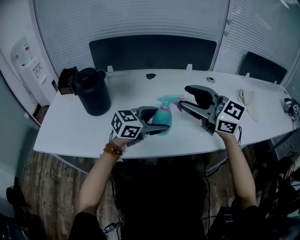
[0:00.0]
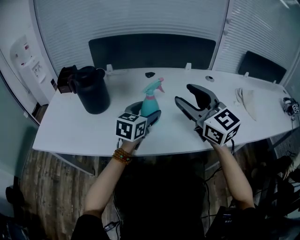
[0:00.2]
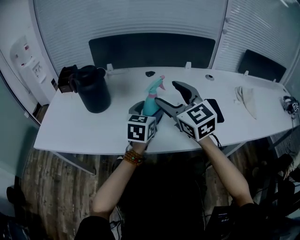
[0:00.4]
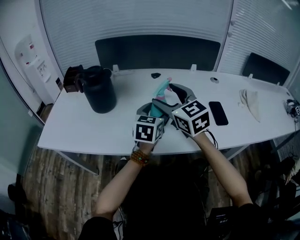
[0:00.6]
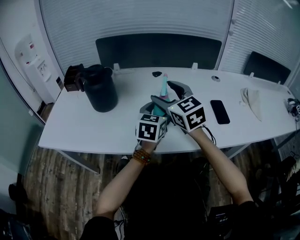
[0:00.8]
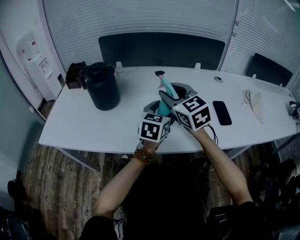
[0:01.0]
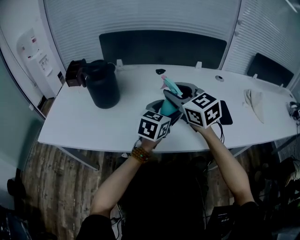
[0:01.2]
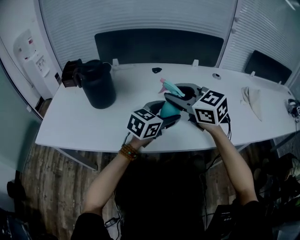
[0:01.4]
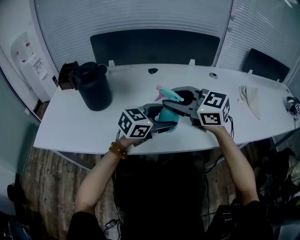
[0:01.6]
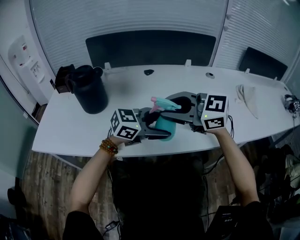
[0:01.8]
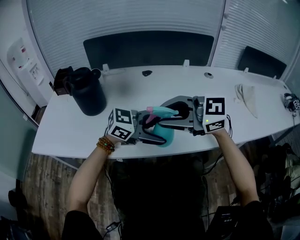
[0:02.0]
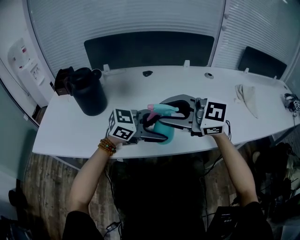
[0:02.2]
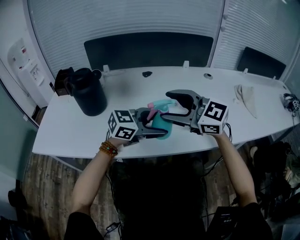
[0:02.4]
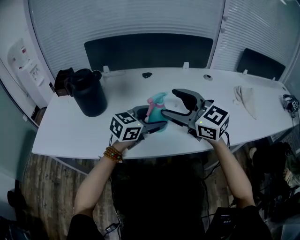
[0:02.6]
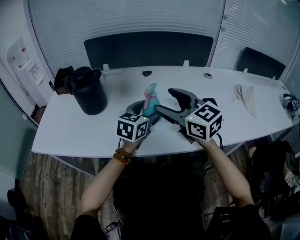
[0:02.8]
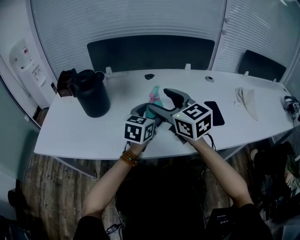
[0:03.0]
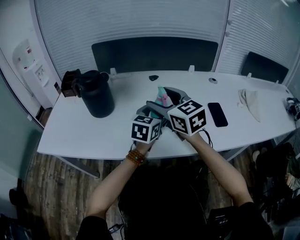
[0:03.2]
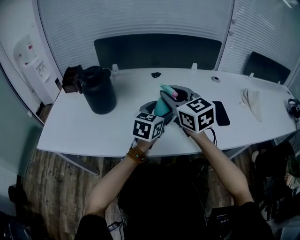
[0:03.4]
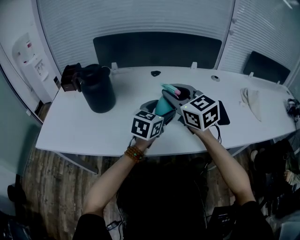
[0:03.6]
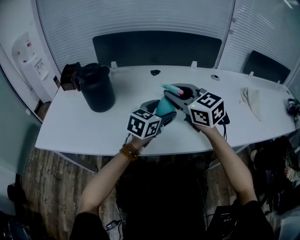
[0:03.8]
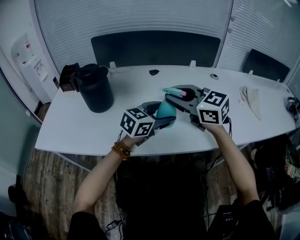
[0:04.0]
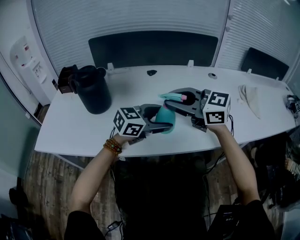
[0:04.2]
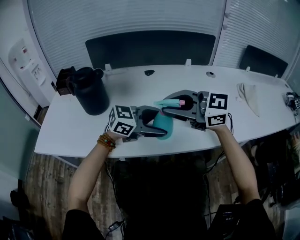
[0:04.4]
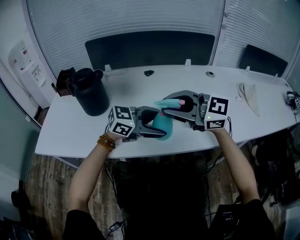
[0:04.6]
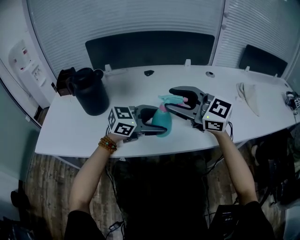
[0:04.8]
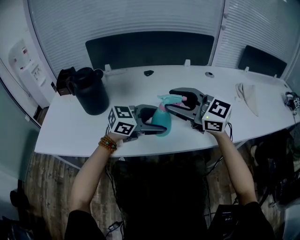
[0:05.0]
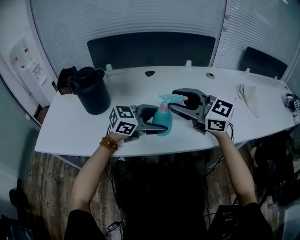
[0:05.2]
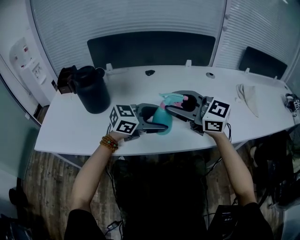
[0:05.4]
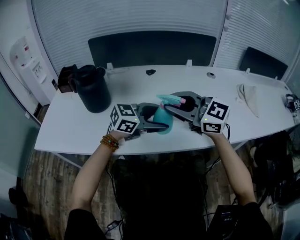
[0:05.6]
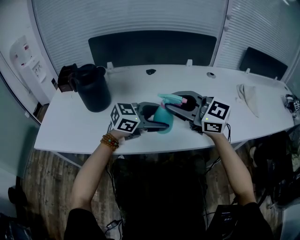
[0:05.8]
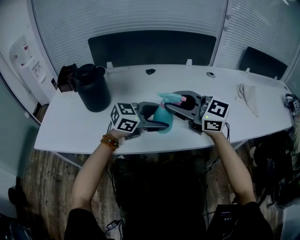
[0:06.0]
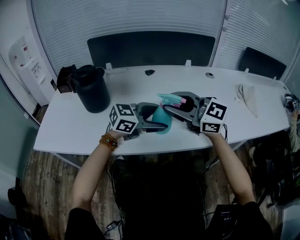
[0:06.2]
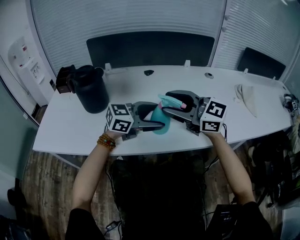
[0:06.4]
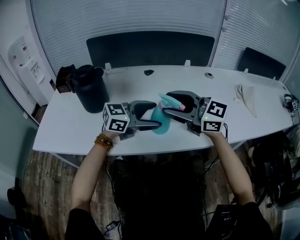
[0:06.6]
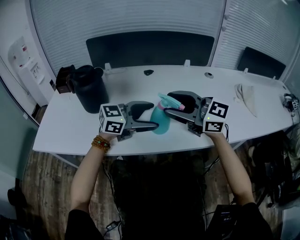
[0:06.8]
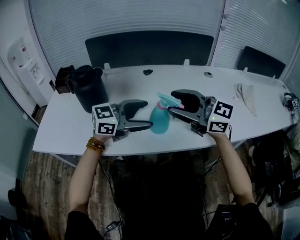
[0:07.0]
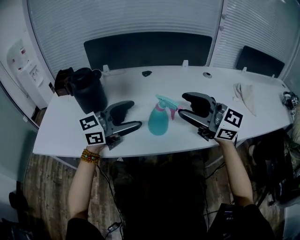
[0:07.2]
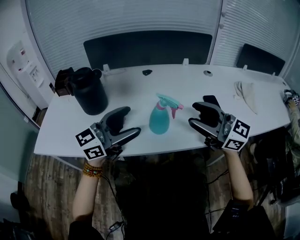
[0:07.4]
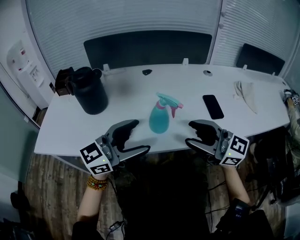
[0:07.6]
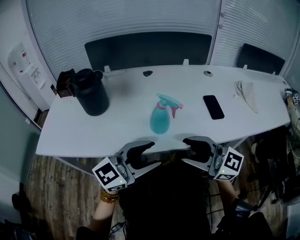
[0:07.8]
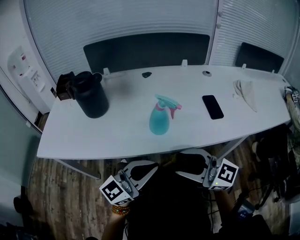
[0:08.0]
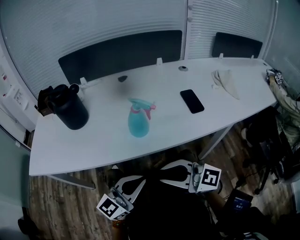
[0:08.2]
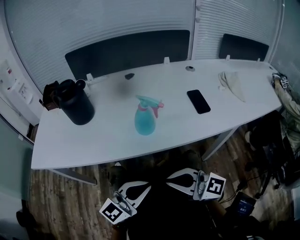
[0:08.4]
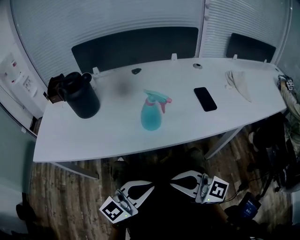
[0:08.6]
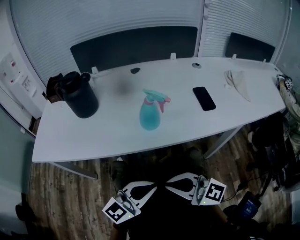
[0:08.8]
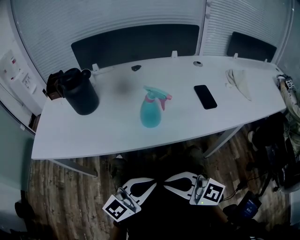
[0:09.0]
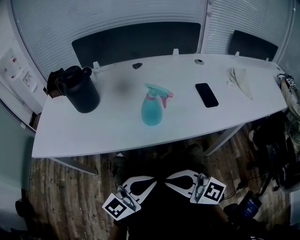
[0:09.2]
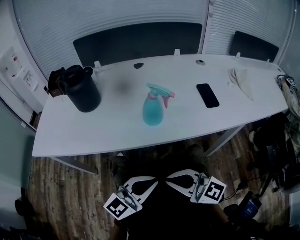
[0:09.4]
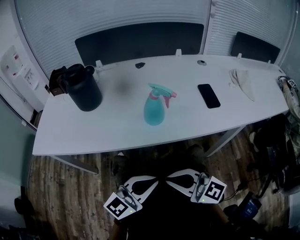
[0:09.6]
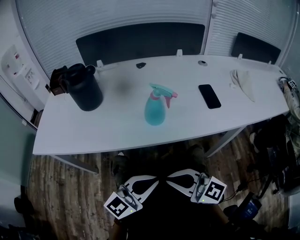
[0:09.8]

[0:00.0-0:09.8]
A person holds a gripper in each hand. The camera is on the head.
0:00.0 to 0:01.4: The right gripper shifts by some 10 cm.
0:01.4 to 0:02.8: The right gripper opens its fingers.
0:02.8 to 0:04.2: The right gripper changes its angle by some 20 degrees, and closes up. Meanwhile the left gripper changes place by roughly 5 cm, and changes its angle by approximately 40 degrees.
0:04.2 to 0:05.6: The grippers stay close to where they were, moving slightly.
0:05.6 to 0:07.0: The left gripper ends up approximately 5 cm from where it was.
0:07.0 to 0:08.4: The right gripper moves about 25 cm, and closes. The left gripper ends up about 25 cm from where it was, rotates approximately 20 degrees, and closes up.
0:08.4 to 0:09.8: The grippers stay close to where they were, moving slightly.

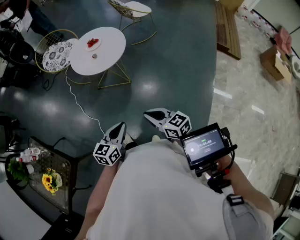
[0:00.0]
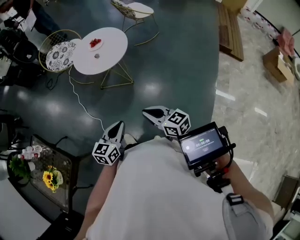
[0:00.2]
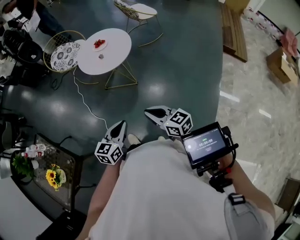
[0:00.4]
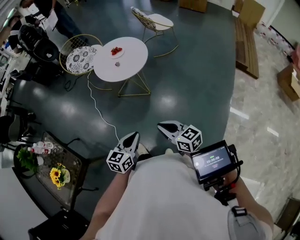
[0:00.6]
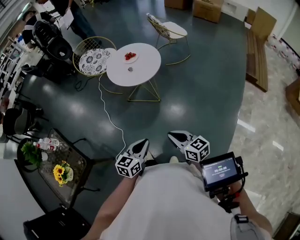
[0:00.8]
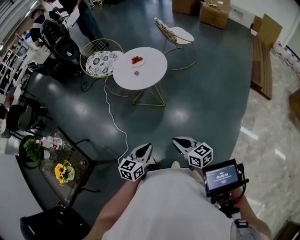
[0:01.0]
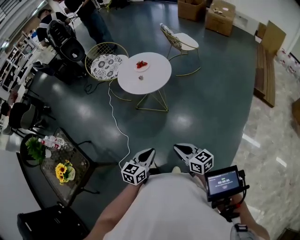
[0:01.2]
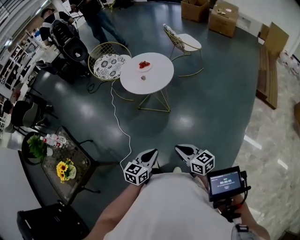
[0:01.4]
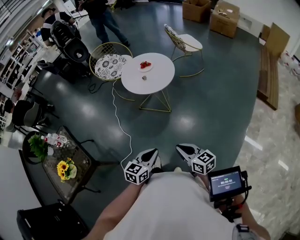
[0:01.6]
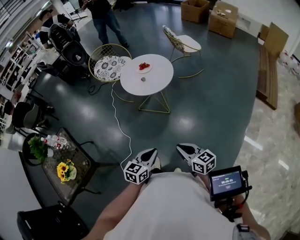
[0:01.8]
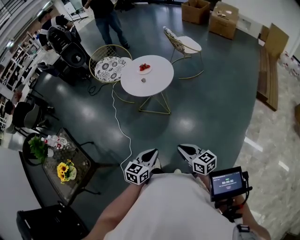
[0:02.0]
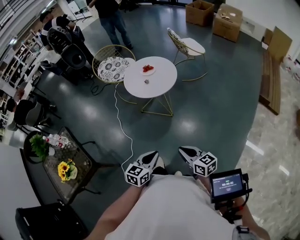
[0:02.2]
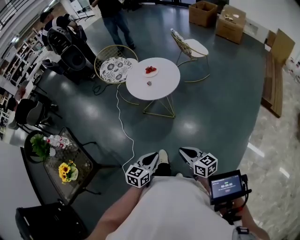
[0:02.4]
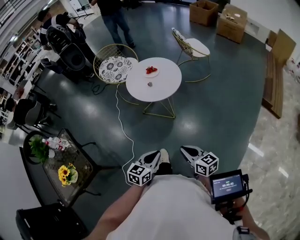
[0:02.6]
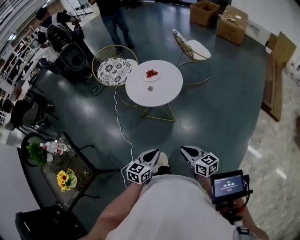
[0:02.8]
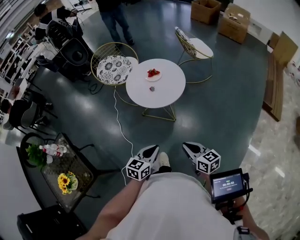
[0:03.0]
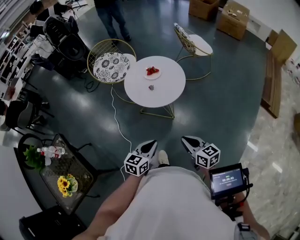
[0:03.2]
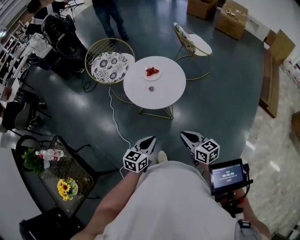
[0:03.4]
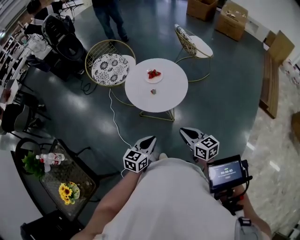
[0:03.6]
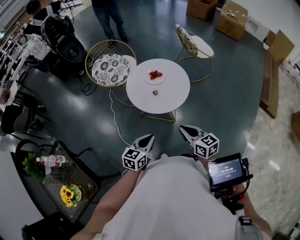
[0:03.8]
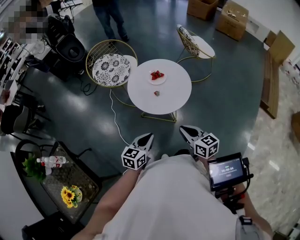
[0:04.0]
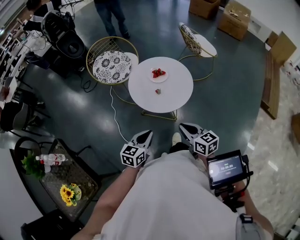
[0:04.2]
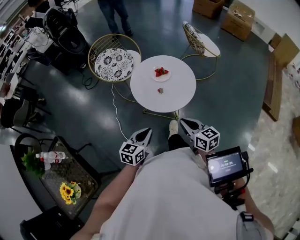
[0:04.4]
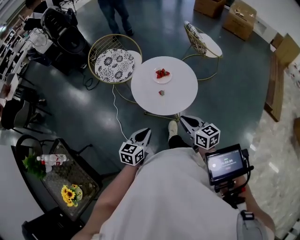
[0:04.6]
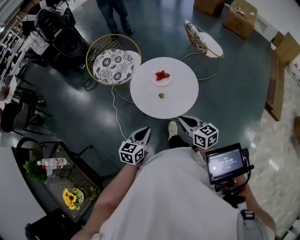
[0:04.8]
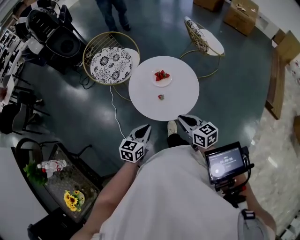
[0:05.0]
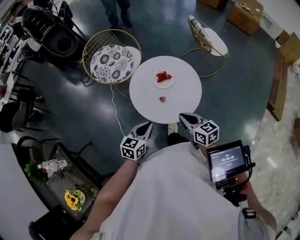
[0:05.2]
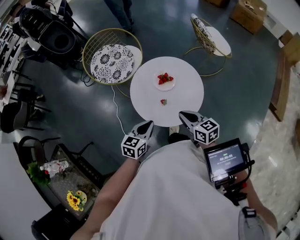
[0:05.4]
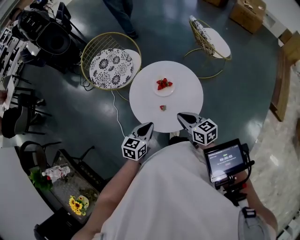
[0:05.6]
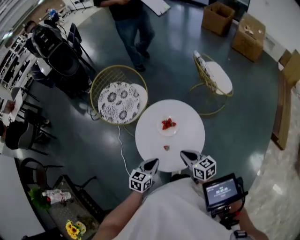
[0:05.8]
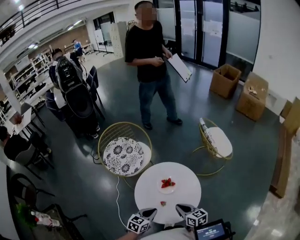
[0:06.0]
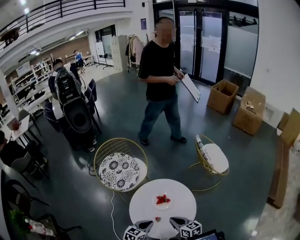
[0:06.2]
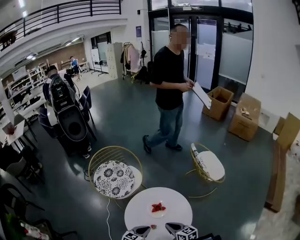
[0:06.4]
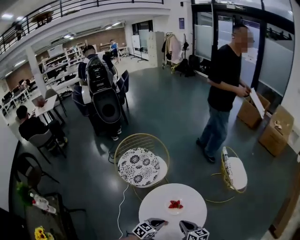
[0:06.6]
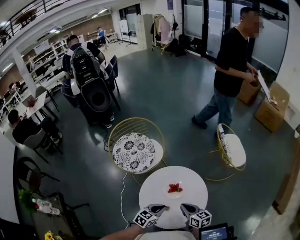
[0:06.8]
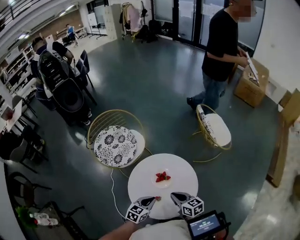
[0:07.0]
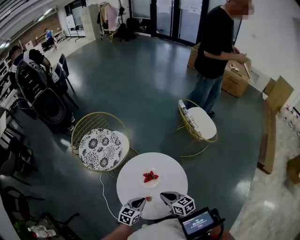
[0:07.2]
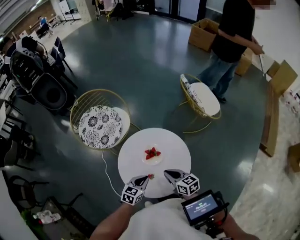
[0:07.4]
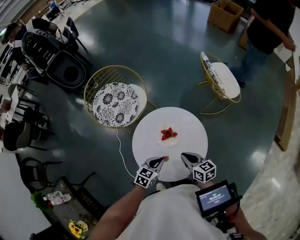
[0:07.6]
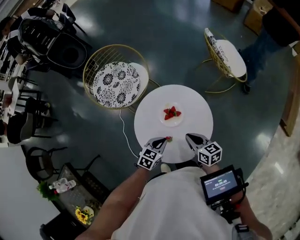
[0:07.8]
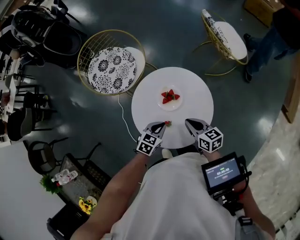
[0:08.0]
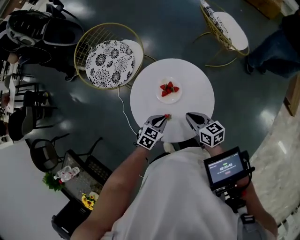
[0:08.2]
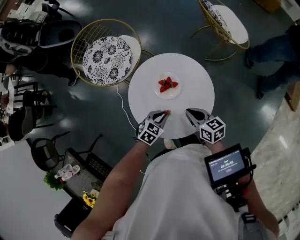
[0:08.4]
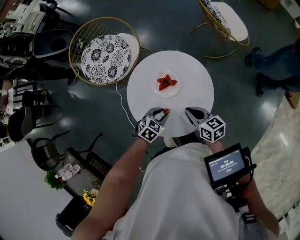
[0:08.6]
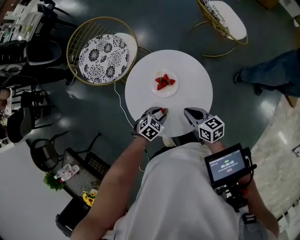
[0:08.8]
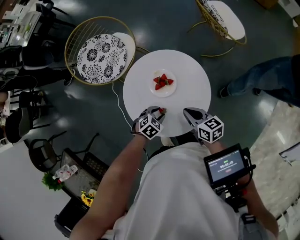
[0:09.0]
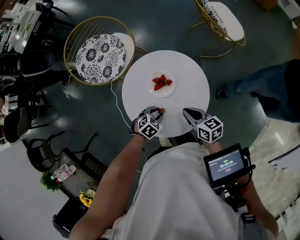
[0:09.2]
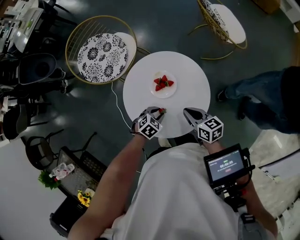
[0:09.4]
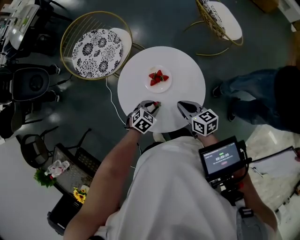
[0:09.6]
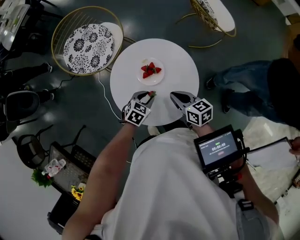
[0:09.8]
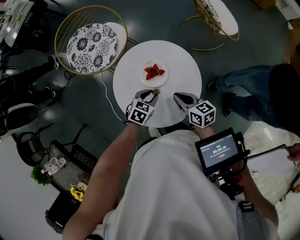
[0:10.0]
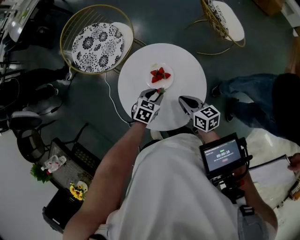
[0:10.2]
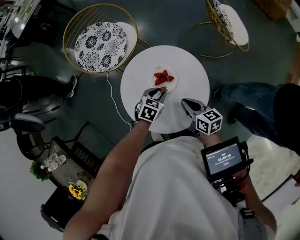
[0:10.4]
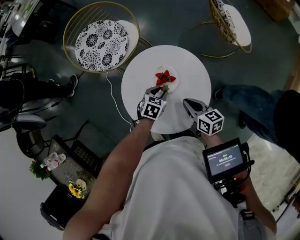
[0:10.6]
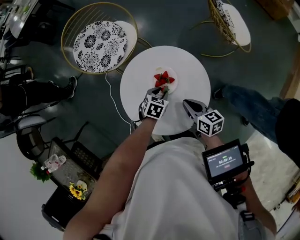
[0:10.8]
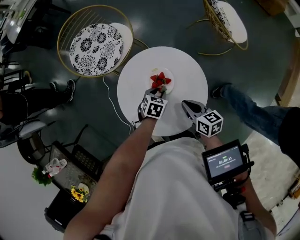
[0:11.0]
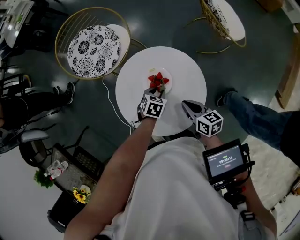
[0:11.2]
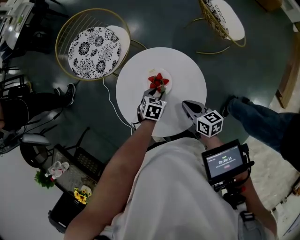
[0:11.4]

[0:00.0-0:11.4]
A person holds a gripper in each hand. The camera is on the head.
0:00.0 to 0:01.4: The grippers stay close to where they were, moving slightly.
0:01.4 to 0:02.8: Both grippers travel together forward, about 10 cm.
0:02.8 to 0:04.2: The left gripper travels forward and to the left by some 25 cm. Meanwhile the right gripper is displaced forward by roughly 20 cm.
0:04.2 to 0:05.6: The grippers both shift forward by approximately 25 cm.
0:05.6 to 0:07.2: The two grippers go some 10 cm forward and downward.
0:07.2 to 0:08.6: The left gripper heads downward, covering about 10 cm, and turns by approximately 30 degrees. The right gripper moves about 5 cm.
0:08.6 to 0:10.0: There are only small adjustments of the grippers.
0:10.0 to 0:11.4: The left gripper changes place by about 5 cm.

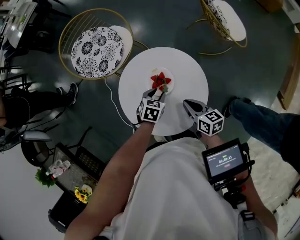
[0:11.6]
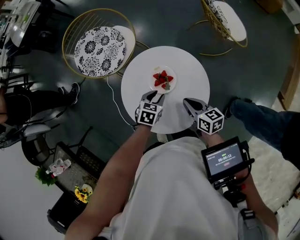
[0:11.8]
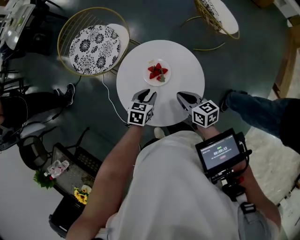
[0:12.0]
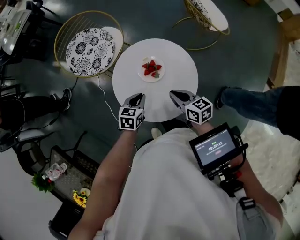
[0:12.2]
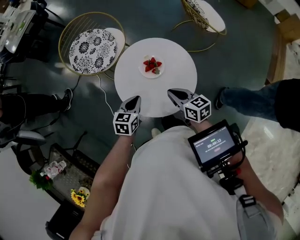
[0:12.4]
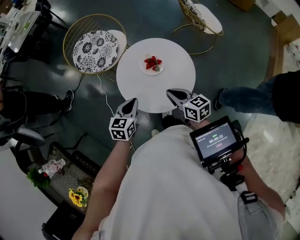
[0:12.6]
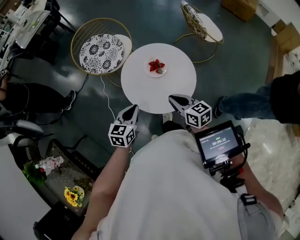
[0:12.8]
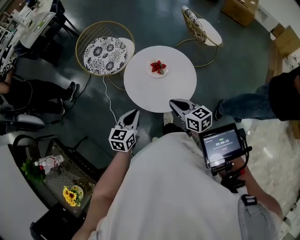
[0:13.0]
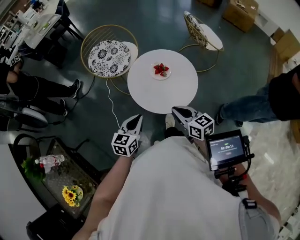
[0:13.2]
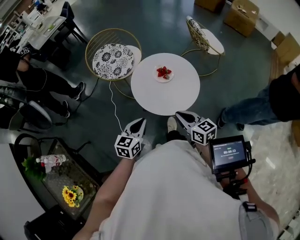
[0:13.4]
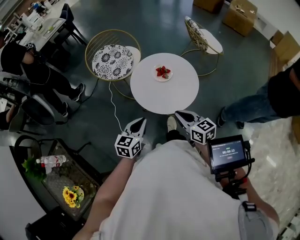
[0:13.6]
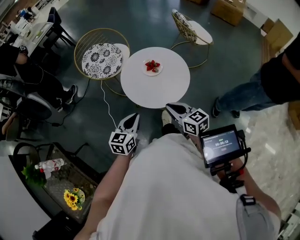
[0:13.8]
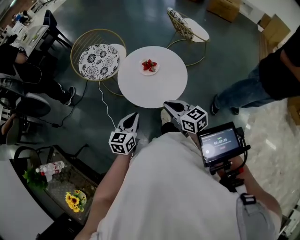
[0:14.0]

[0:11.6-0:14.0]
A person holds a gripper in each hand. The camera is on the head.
0:11.6 to 0:12.8: The right gripper is displaced backward, upward and to the left by about 20 cm. Meanwhile the left gripper is displaced backward, upward and to the left by about 30 cm, changes its angle by some 30 degrees, and closes its fingers.
0:12.8 to 0:14.0: Both grippers move backward, roughly 10 cm.
